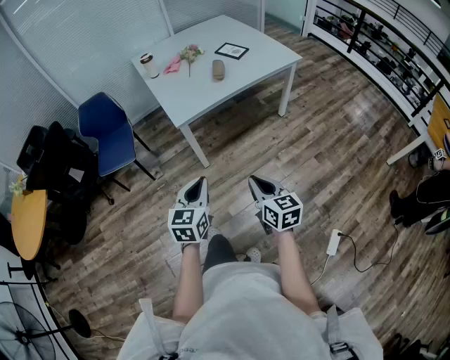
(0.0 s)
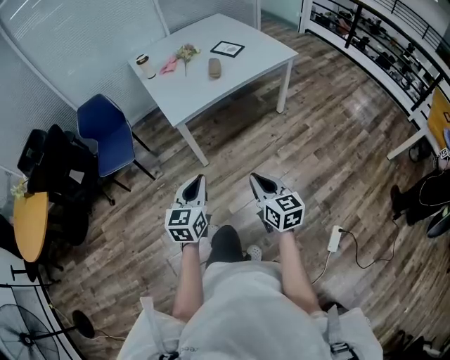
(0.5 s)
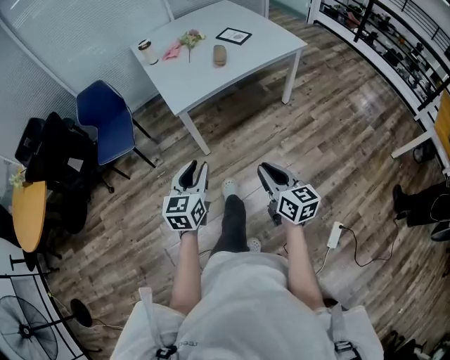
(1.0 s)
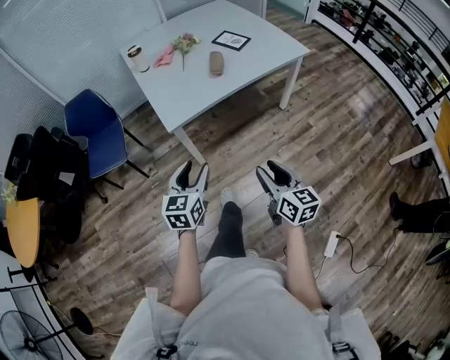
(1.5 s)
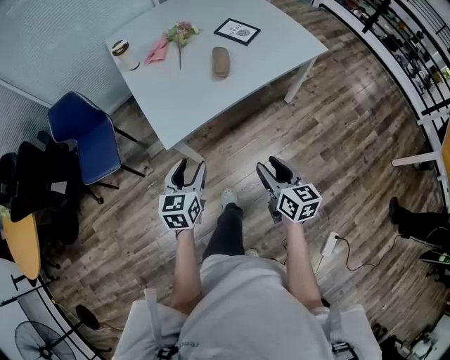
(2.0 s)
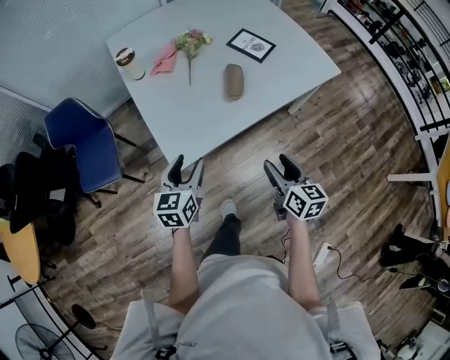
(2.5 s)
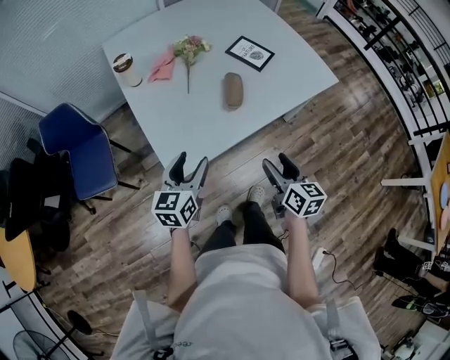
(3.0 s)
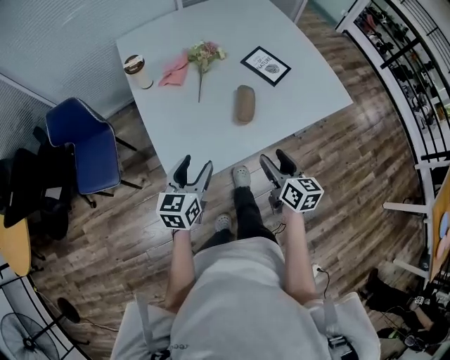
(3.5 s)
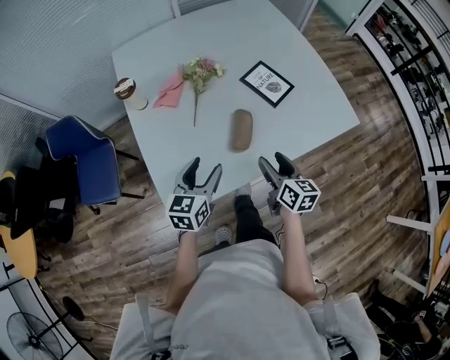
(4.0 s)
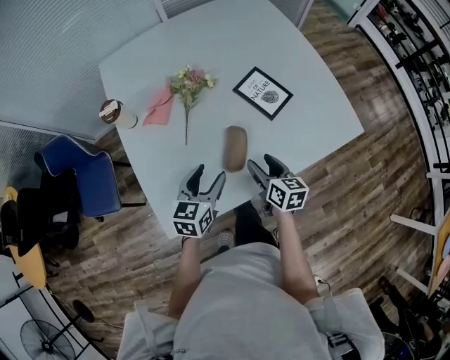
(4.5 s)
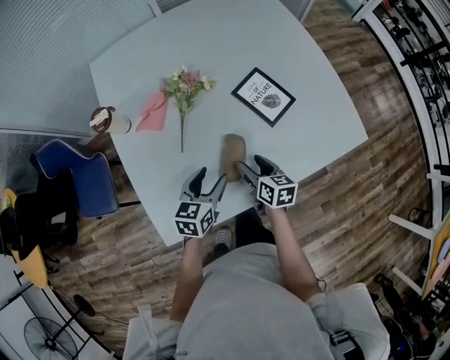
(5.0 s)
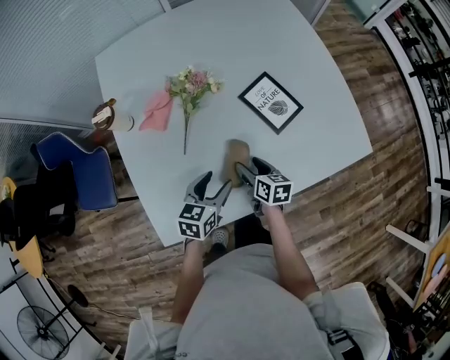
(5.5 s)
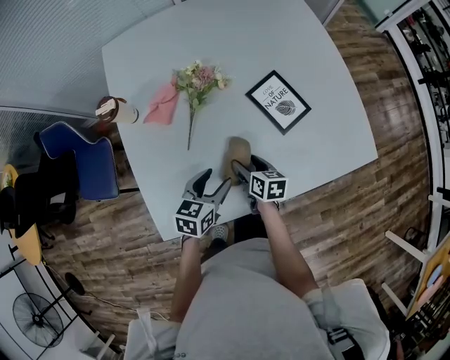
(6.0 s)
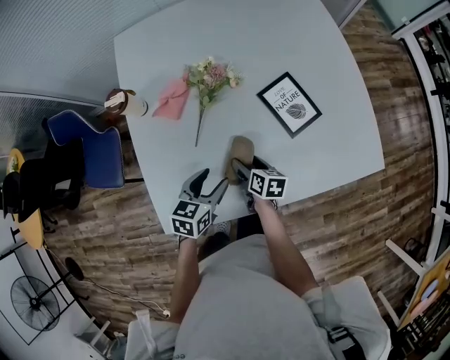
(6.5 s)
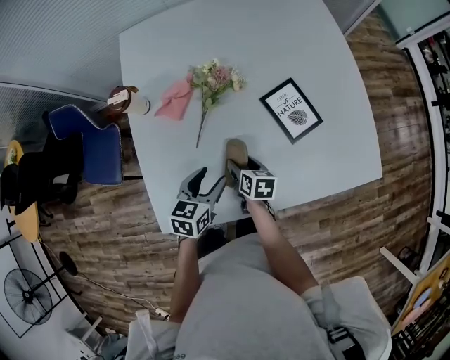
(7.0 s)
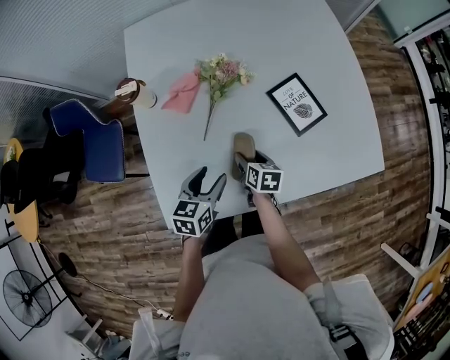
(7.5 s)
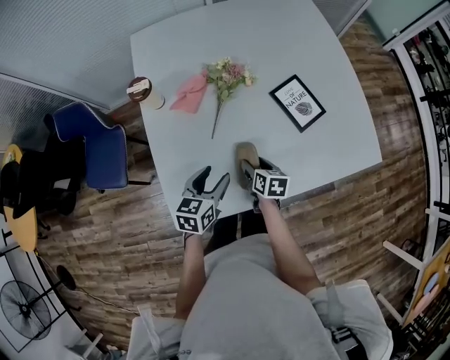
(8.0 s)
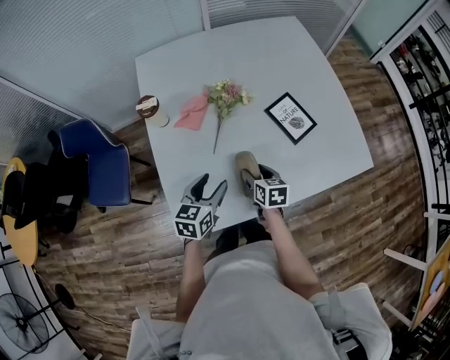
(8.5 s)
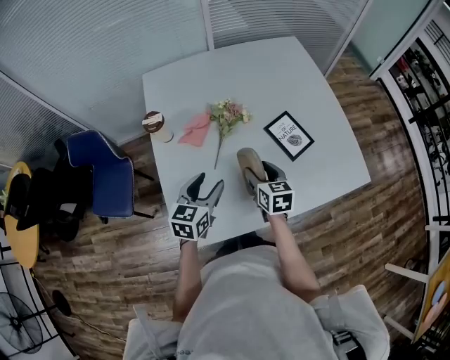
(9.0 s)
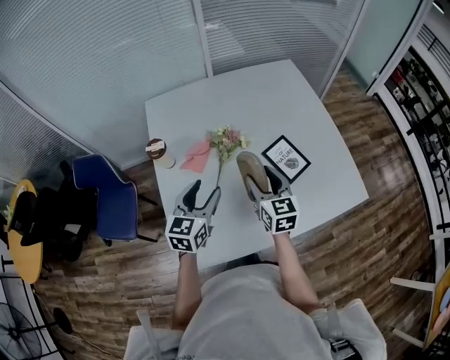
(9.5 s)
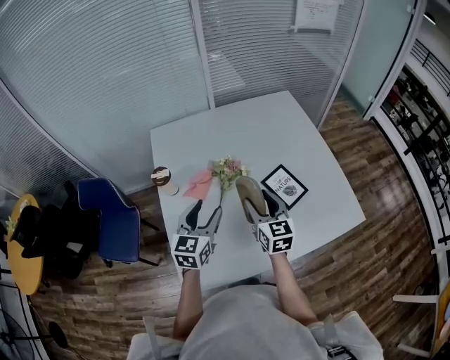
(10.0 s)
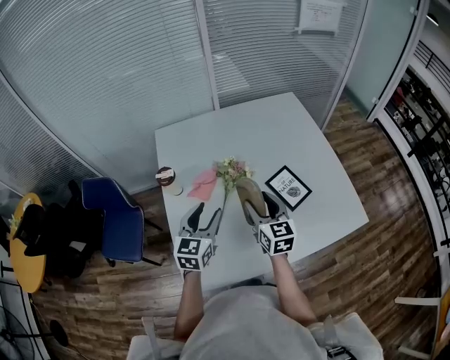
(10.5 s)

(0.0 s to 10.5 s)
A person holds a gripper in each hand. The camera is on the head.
0.0 s - 2.0 s: The grippers both shift forward by approximately 30 cm. The right gripper opens; the left gripper opens.
2.0 s - 4.0 s: Both grippers travel together forward, approximately 35 cm.
4.0 s - 6.5 s: The left gripper heads forward and downward, covering some 15 cm. The right gripper goes approximately 25 cm downward, forward and to the left, and turns by approximately 30 degrees.
6.5 s - 8.5 s: The right gripper travels upward by roughly 10 cm, and swivels approximately 20 degrees. Meanwhile the left gripper heads to the left and upward, covering roughly 10 cm.
8.5 s - 10.5 s: The left gripper heads upward and forward, covering approximately 15 cm, and turns by approximately 20 degrees; the right gripper shifts approximately 20 cm upward, and changes its angle by approximately 30 degrees.

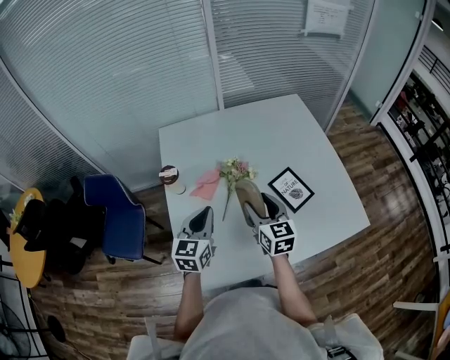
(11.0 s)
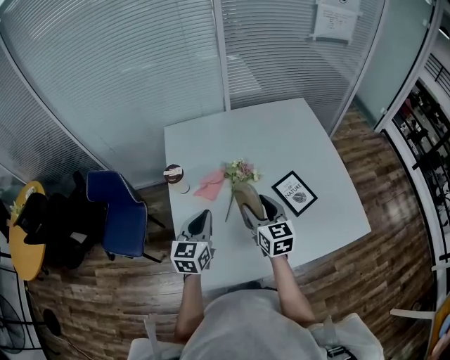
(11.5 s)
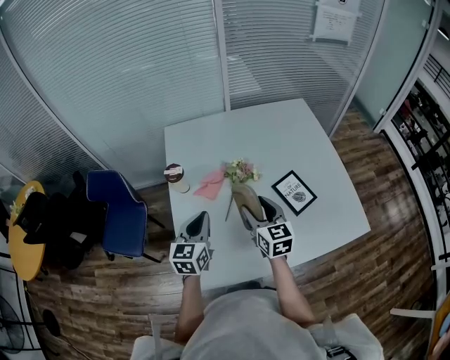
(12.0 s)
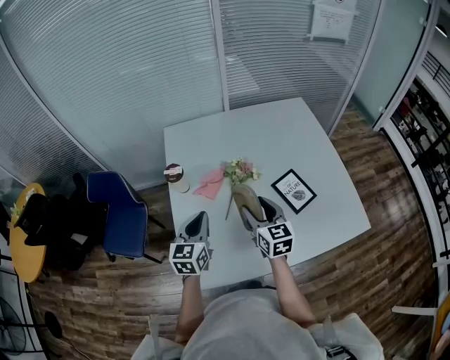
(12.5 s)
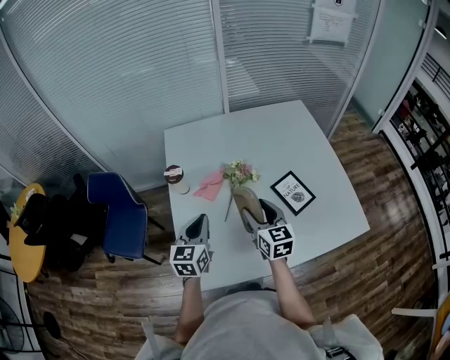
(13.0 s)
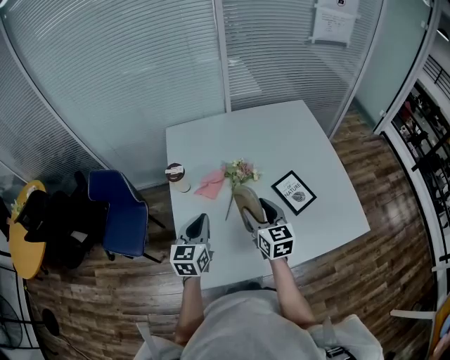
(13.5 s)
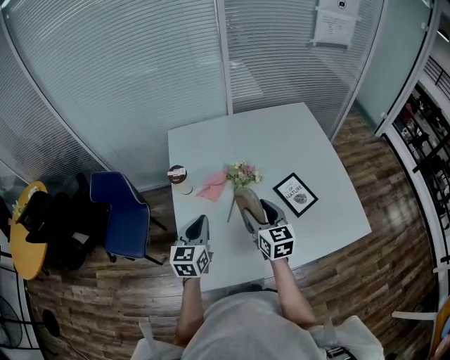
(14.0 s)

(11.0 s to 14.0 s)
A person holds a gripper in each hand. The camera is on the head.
11.0 s - 12.5 s: The grippers make only small movements.
12.5 s - 14.0 s: Both grippers stay about where they are.

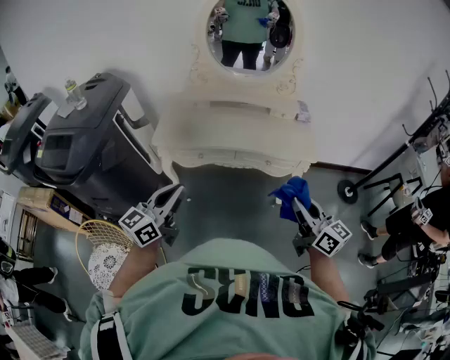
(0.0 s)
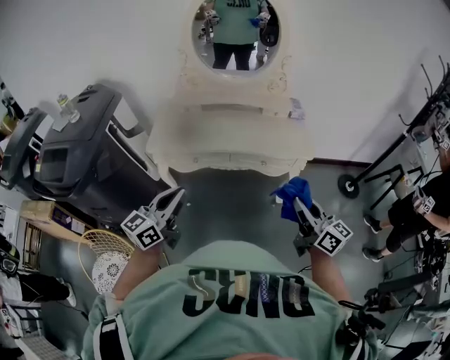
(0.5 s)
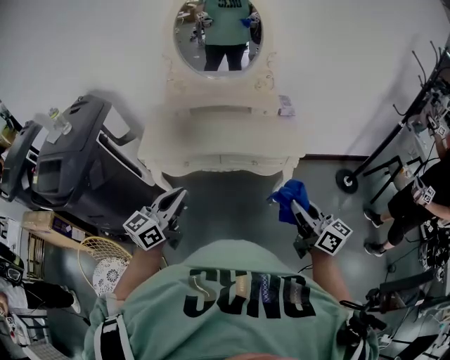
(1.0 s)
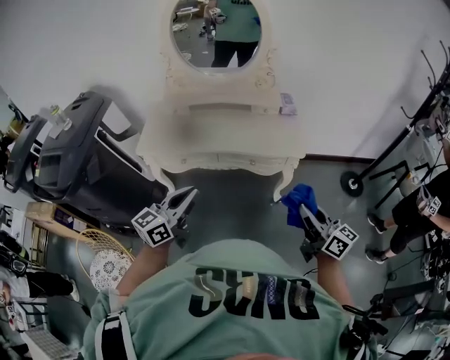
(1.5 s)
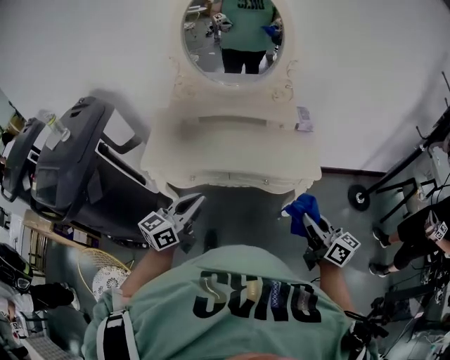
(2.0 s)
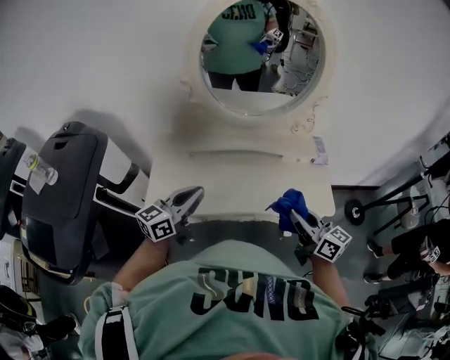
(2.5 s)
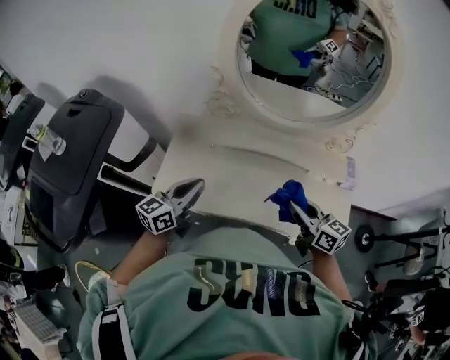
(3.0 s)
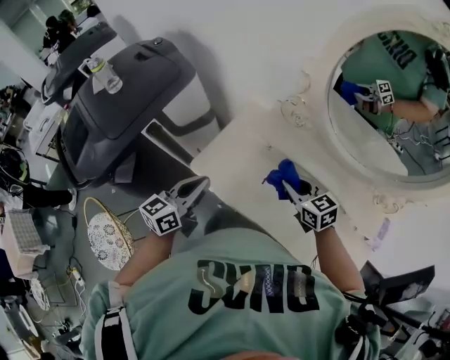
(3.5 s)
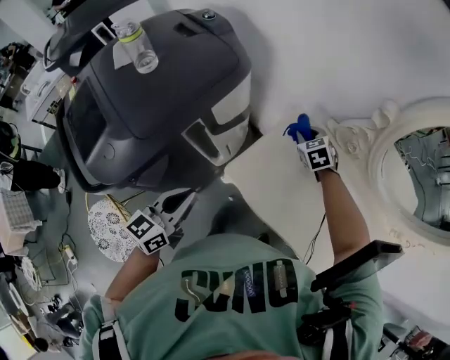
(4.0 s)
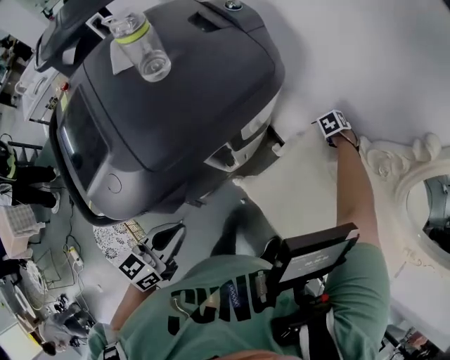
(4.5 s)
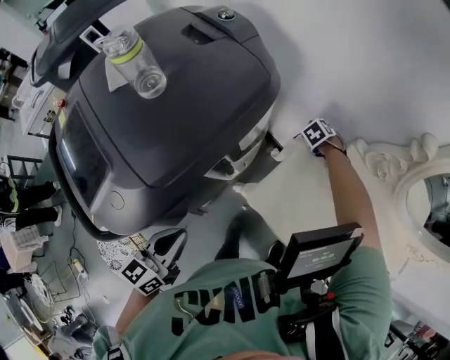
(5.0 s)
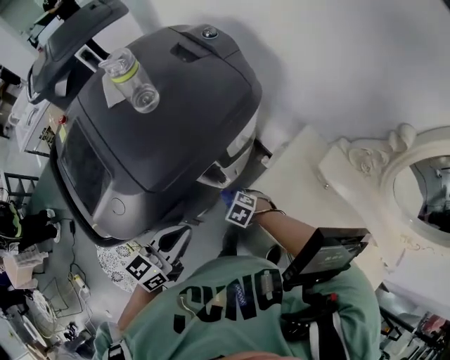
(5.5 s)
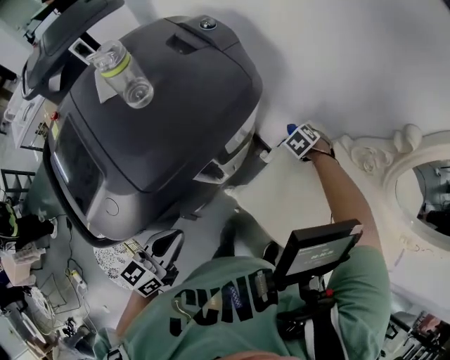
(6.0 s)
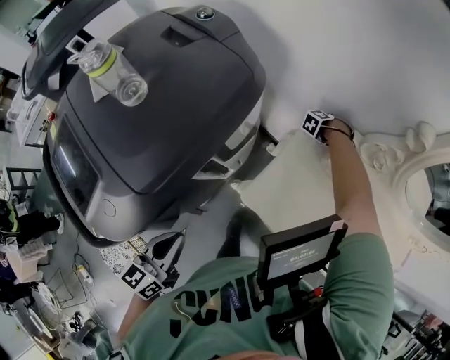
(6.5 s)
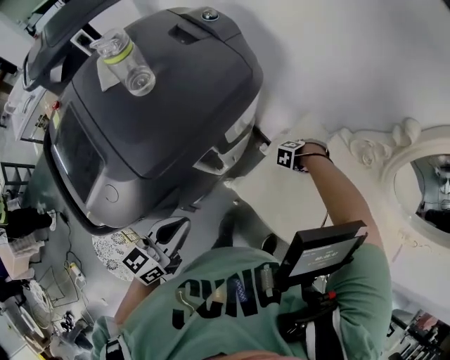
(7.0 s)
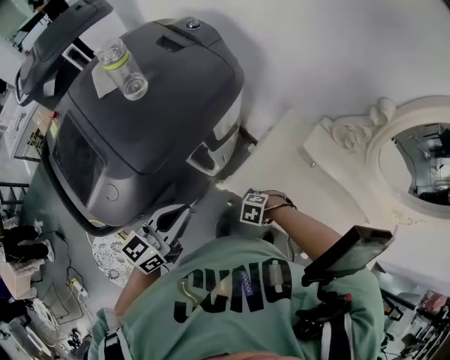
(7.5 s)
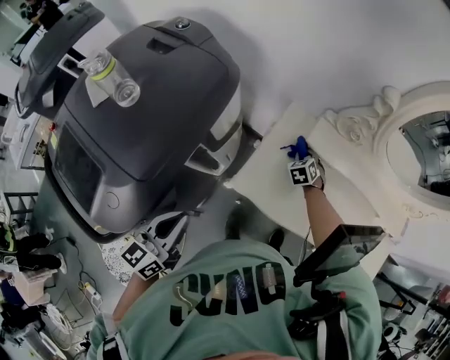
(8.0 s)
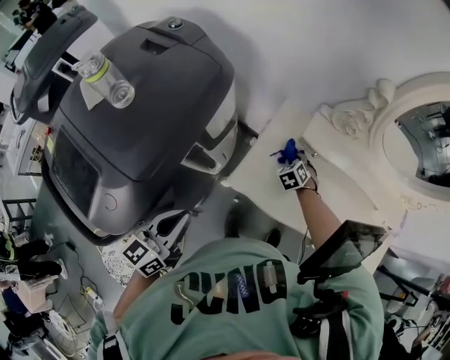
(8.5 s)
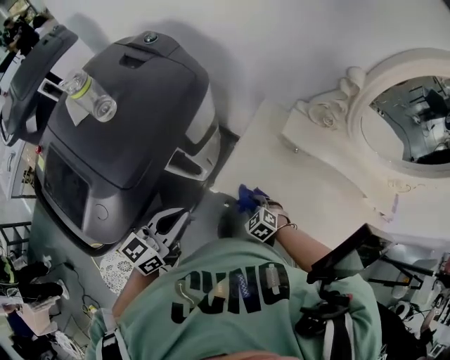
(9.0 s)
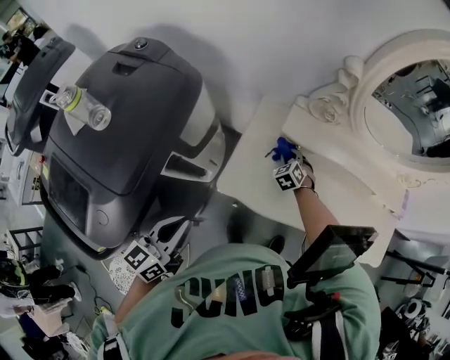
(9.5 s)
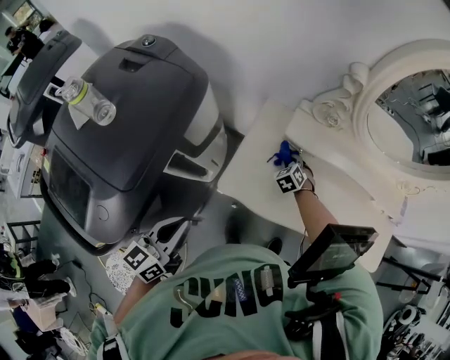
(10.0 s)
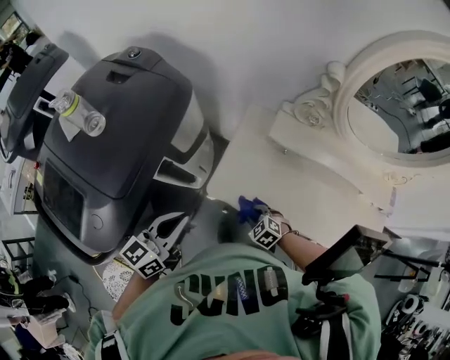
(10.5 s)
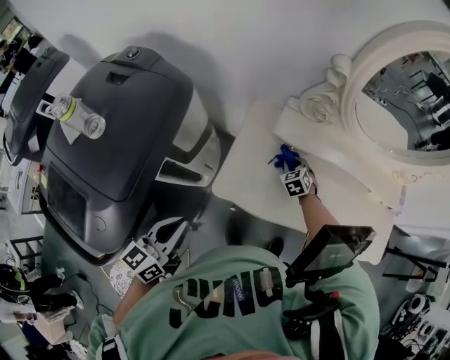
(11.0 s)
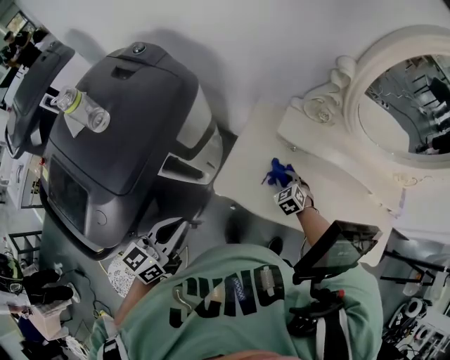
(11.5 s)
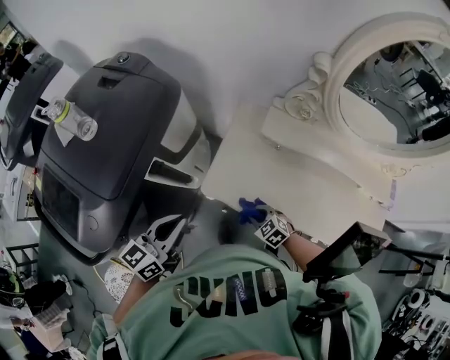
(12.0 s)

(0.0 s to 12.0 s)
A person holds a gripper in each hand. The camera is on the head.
0.0 s - 2.0 s: The left gripper shifts approximately 20 cm forward and to the right. Meanwhile the right gripper goes roughly 15 cm forward, to the right and downward.
2.0 s - 4.0 s: Both grippers are carried some 70 cm. The left gripper rotates some 50 degrees. The right gripper points its fingers approximately 50 degrees further downward.
4.0 s - 6.0 s: The left gripper ends up some 10 cm from where it was; the right gripper moves downward, about 10 cm, and turns by approximately 30 degrees.
6.0 s - 8.0 s: The right gripper changes its angle by approximately 40 degrees.
8.0 s - 10.0 s: The right gripper travels backward and back again, roughly 25 cm each way.
10.0 s - 12.0 s: The right gripper moves some 25 cm, and turns by roughly 30 degrees.

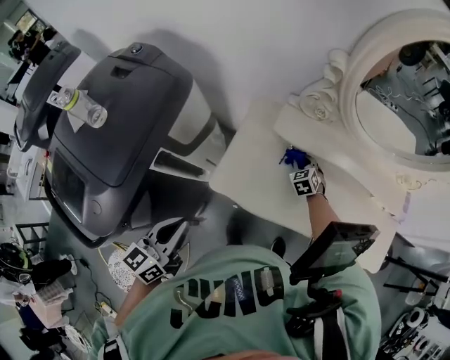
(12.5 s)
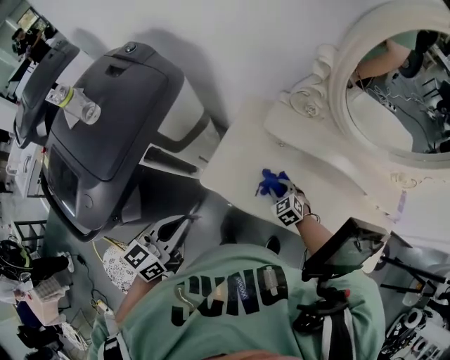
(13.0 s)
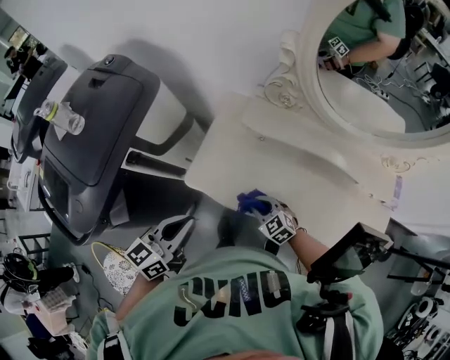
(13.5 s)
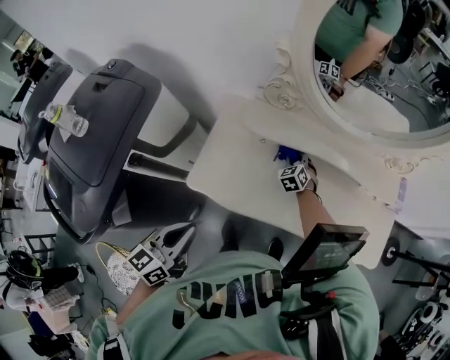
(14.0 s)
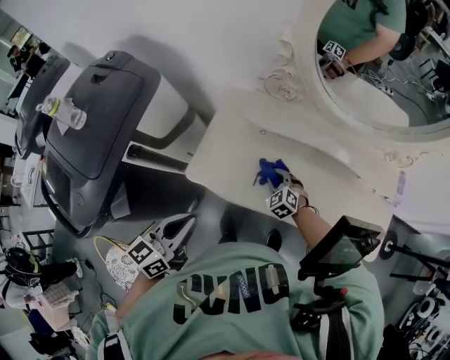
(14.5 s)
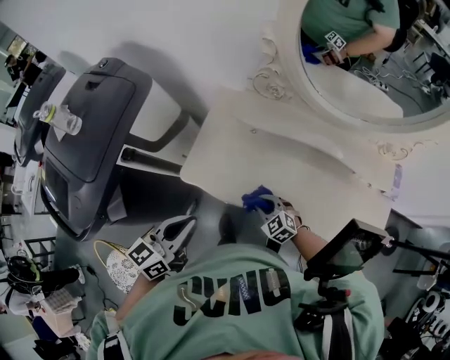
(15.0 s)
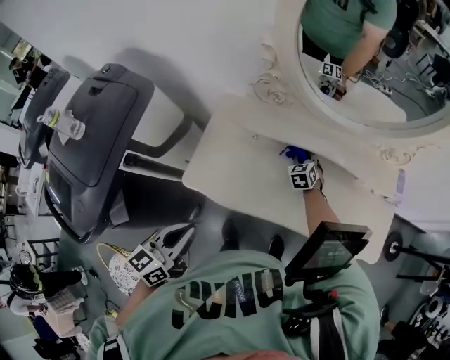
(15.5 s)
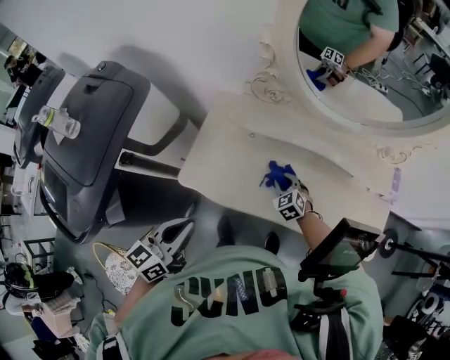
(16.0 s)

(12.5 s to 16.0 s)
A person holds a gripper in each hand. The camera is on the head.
12.5 s - 14.5 s: The left gripper ends up roughly 15 cm from where it was.
14.5 s - 16.0 s: The right gripper moves forward and backward over some 25 cm, changing direction 2 times.
